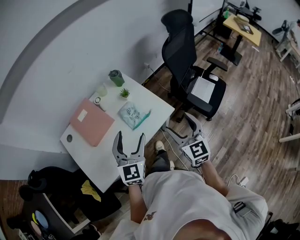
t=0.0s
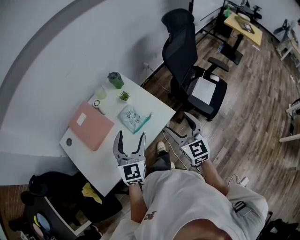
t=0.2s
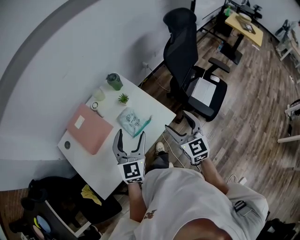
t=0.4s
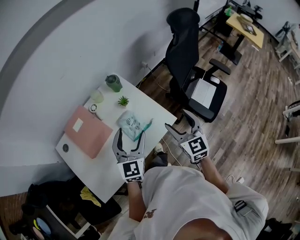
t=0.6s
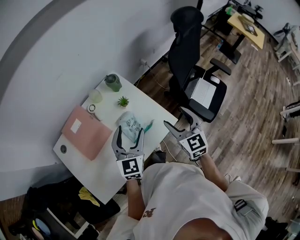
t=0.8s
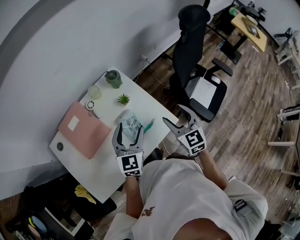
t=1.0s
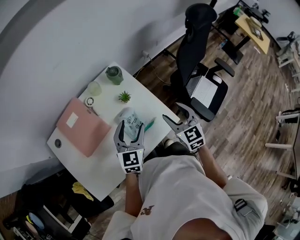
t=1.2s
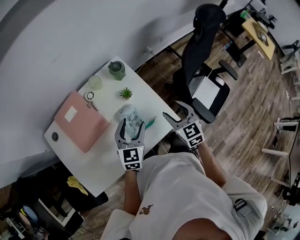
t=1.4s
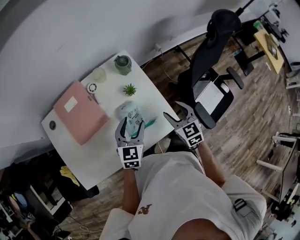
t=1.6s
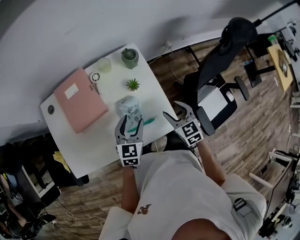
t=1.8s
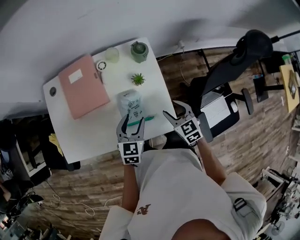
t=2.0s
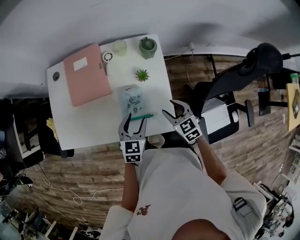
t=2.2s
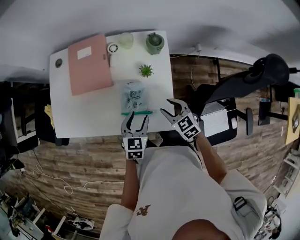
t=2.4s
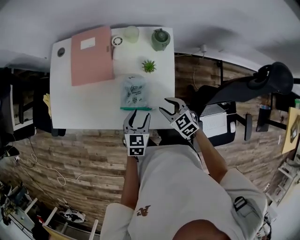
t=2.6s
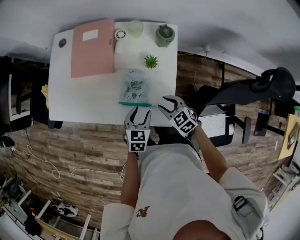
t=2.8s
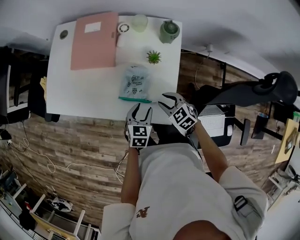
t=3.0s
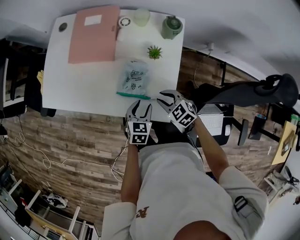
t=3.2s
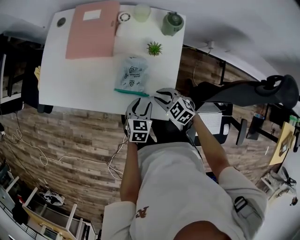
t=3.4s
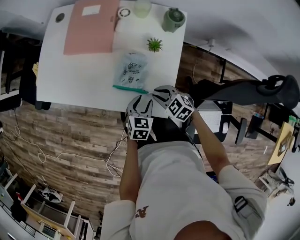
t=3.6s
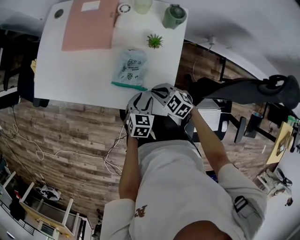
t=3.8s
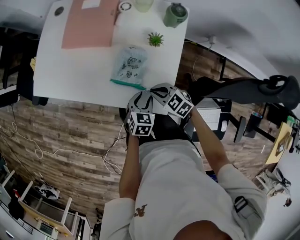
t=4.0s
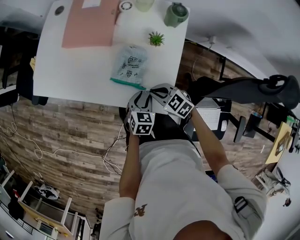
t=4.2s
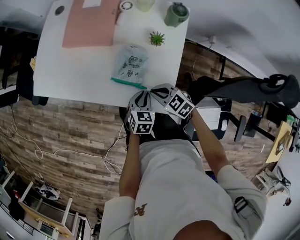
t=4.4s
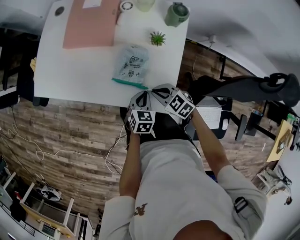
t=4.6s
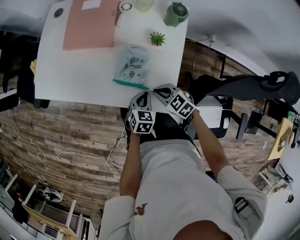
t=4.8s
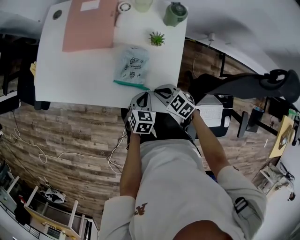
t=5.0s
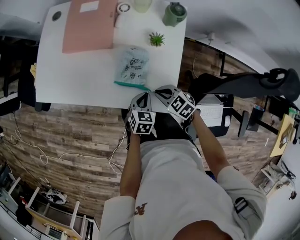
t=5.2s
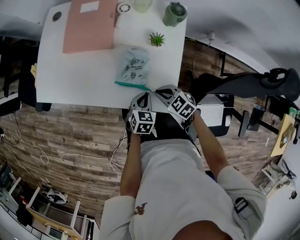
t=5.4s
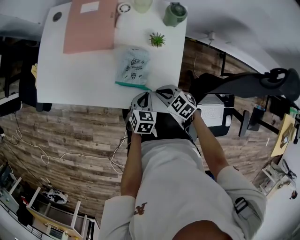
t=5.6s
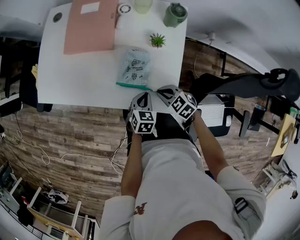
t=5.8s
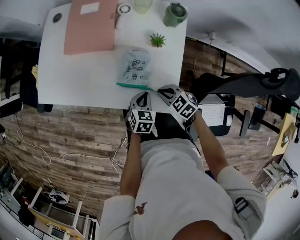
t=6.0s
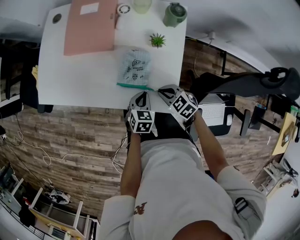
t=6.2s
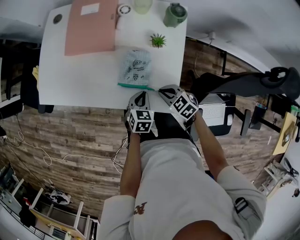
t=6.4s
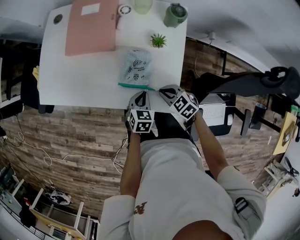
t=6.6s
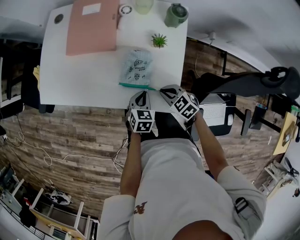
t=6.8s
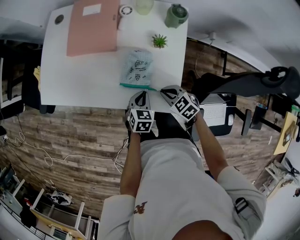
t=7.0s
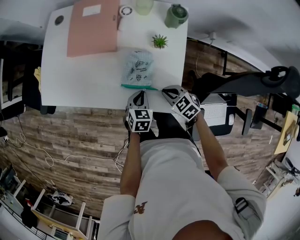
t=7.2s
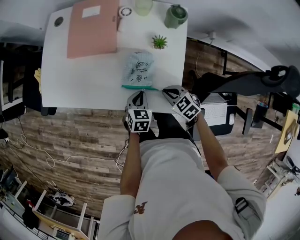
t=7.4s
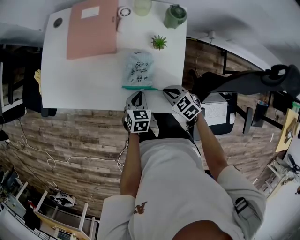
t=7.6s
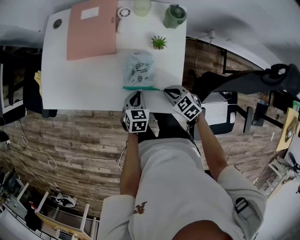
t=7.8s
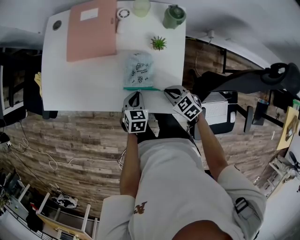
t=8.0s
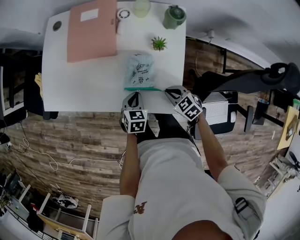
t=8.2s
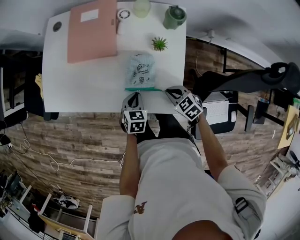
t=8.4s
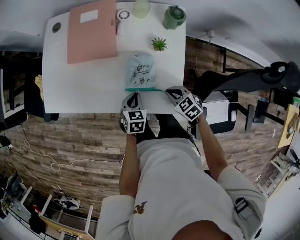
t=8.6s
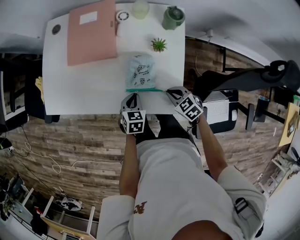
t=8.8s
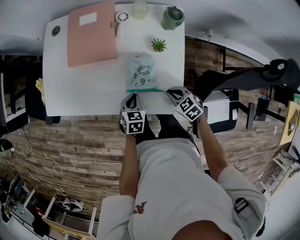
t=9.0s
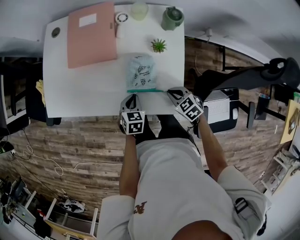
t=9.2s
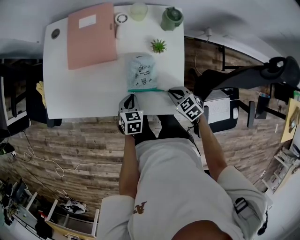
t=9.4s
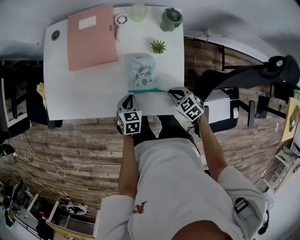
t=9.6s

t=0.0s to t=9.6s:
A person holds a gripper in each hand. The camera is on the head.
t=0.0s to t=1.6s: The two grippers go approximately 25 cm forward and downward. The right gripper turns by about 30 degrees, while the left gripper swivels approximately 20 degrees.
t=1.6s to t=3.2s: Both grippers move downward, approximately 15 cm. The right gripper swivels about 70 degrees, and closes up; the left gripper changes its angle by roughly 40 degrees.
t=3.2s to t=4.8s: The left gripper closes up.
t=4.8s to t=6.4s: The grippers make only small movements.
t=6.4s to t=8.0s: The grippers stay close to where they were, moving slightly.
t=8.0s to t=9.6s: The left gripper changes place by some 5 cm.

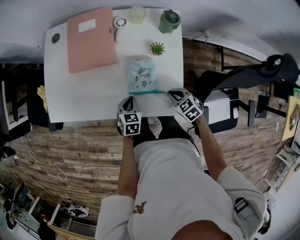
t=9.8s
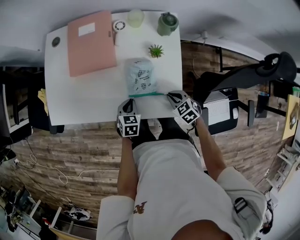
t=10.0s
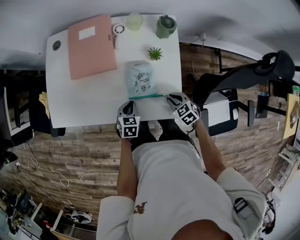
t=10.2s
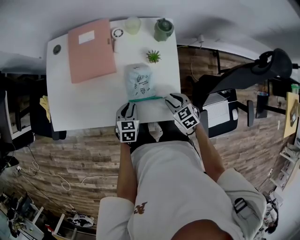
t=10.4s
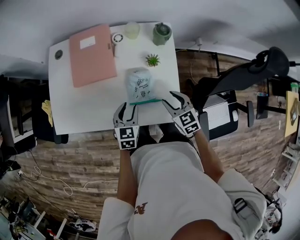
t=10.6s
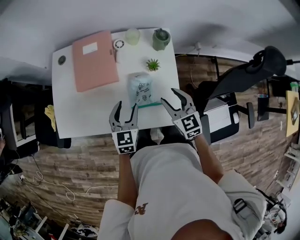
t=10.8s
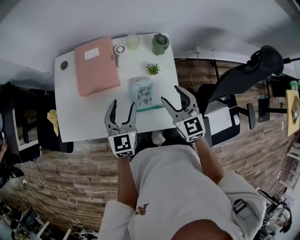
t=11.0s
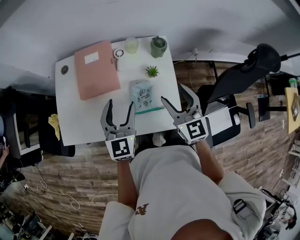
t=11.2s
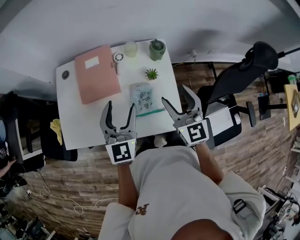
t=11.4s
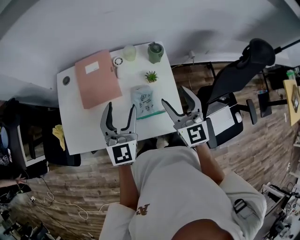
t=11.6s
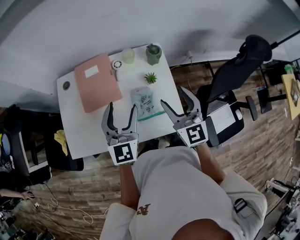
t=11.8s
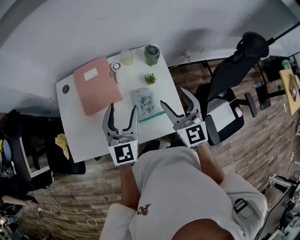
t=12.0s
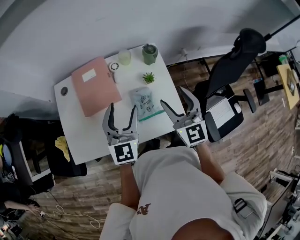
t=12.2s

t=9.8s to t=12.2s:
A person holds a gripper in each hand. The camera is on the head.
t=9.8s to t=11.0s: The two grippers go roughly 25 cm upward. The left gripper points its fingers roughly 30 degrees further upward, and opens its fingers, while the right gripper points its fingers roughly 40 degrees further upward, and opens up.
t=11.0s to t=12.2s: The grippers both shift upward by approximately 10 cm.

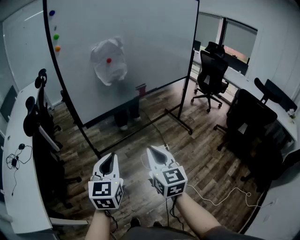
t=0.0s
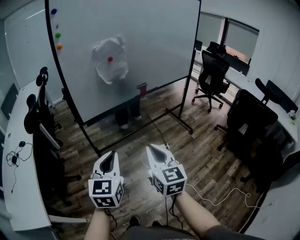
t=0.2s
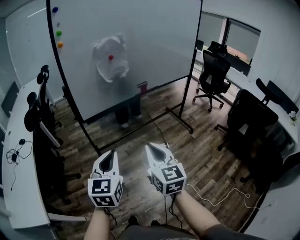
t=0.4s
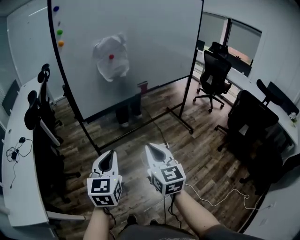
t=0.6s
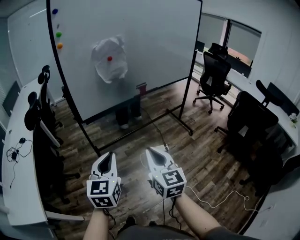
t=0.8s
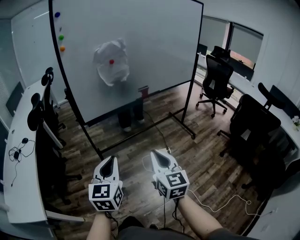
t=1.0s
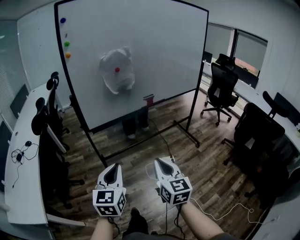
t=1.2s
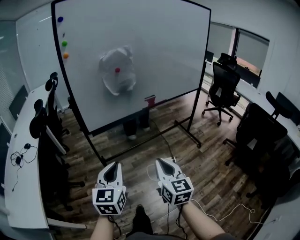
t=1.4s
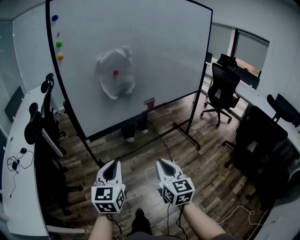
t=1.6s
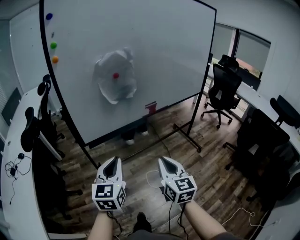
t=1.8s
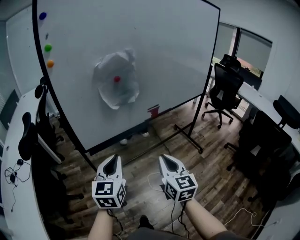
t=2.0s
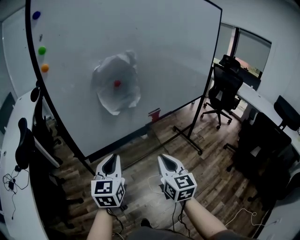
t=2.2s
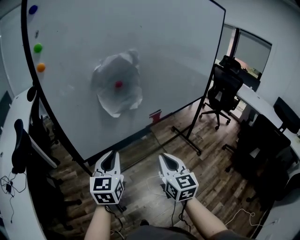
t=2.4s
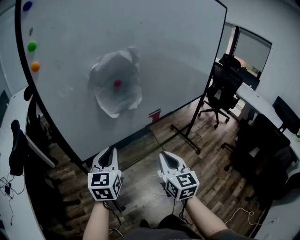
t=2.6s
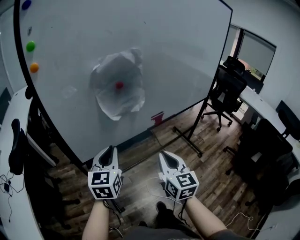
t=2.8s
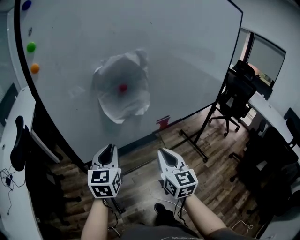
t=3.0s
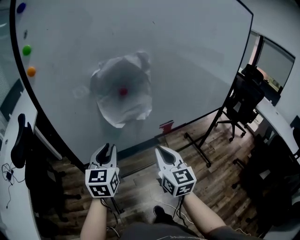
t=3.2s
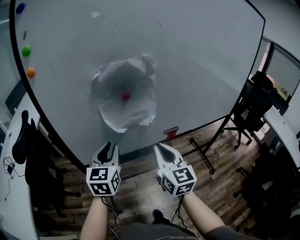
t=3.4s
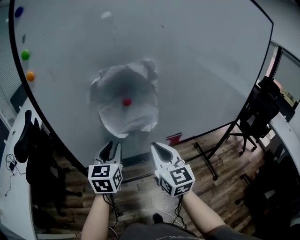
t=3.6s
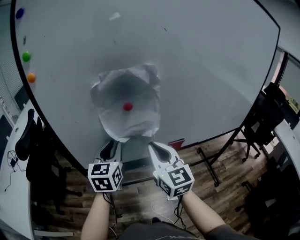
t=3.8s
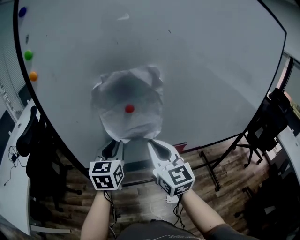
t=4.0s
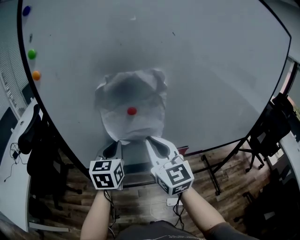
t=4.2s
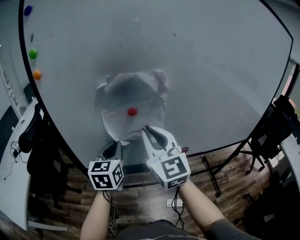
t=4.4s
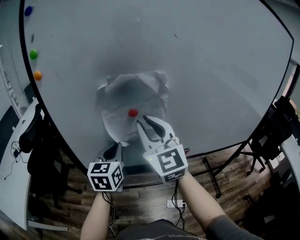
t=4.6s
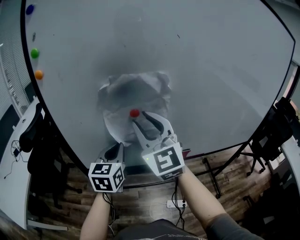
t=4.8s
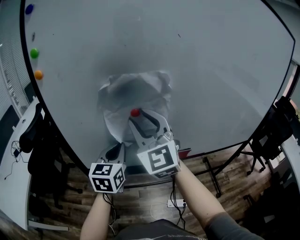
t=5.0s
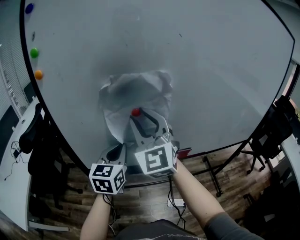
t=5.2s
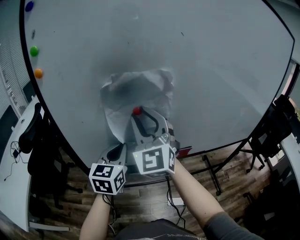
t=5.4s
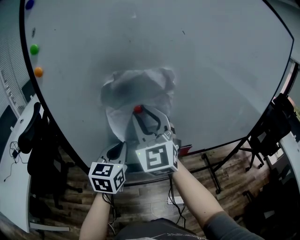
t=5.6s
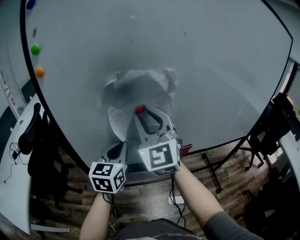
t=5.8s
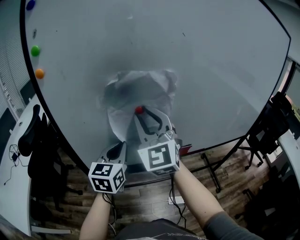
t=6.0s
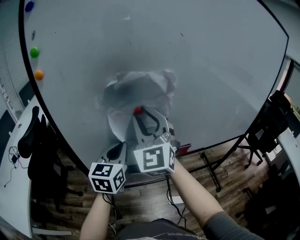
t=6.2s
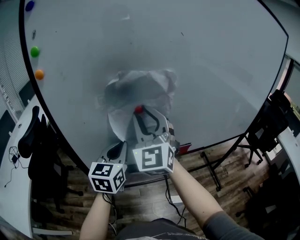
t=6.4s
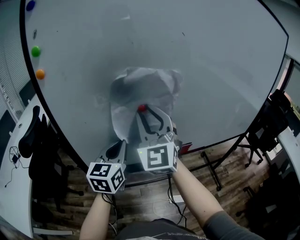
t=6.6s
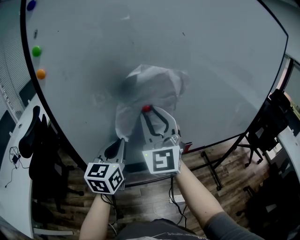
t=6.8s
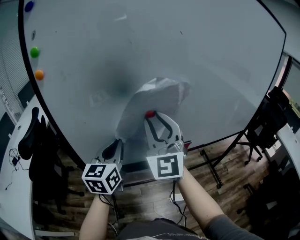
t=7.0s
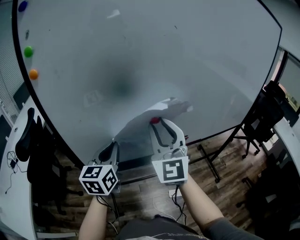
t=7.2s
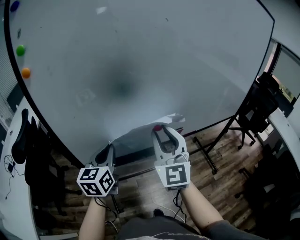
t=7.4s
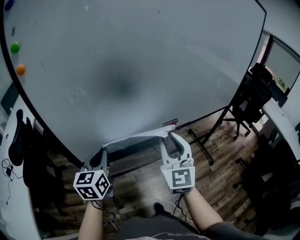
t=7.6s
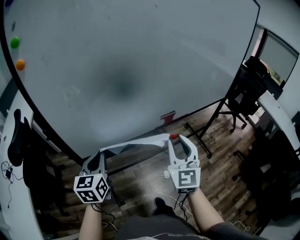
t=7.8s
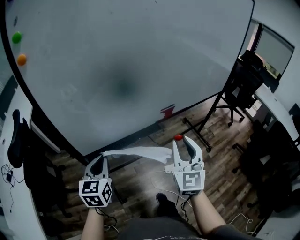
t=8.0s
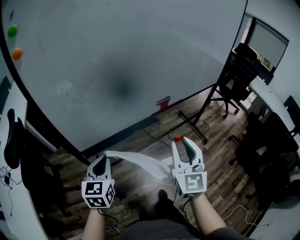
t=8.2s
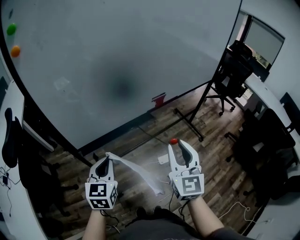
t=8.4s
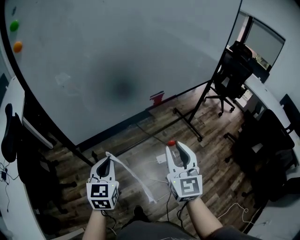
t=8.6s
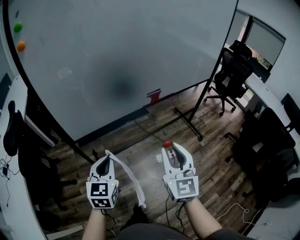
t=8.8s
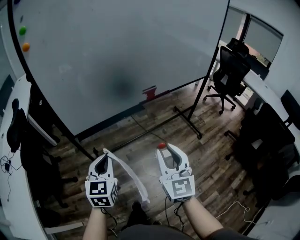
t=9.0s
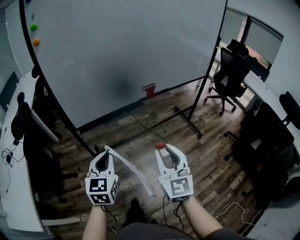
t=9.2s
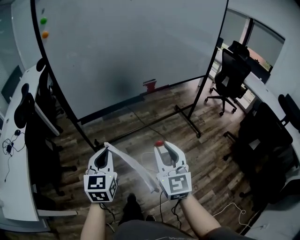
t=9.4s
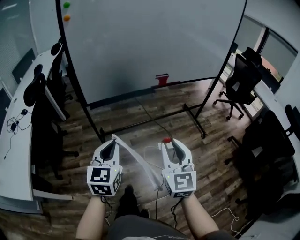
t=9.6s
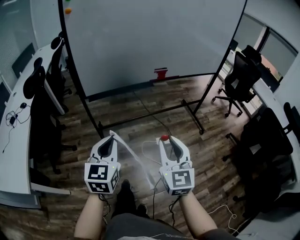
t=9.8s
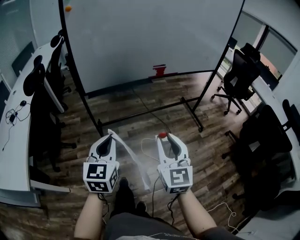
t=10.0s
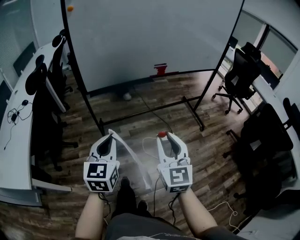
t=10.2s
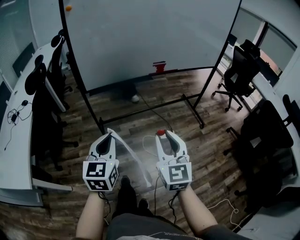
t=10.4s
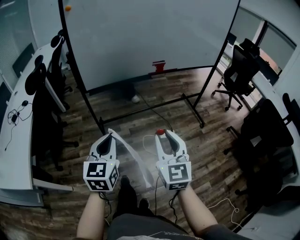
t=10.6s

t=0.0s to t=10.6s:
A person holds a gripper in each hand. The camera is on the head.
t=0.0s to t=1.6s: The right gripper heads forward and downward, covering roughly 10 cm. Meanwhile the left gripper heads forward, covering some 10 cm.
t=1.6s to t=3.0s: Both grippers travel together forward, roughly 30 cm.
t=3.0s to t=4.6s: The left gripper moves forward, some 10 cm, while the right gripper goes some 25 cm forward and upward, and rotates about 40 degrees.
t=6.0s to t=7.6s: The left gripper goes about 10 cm backward and downward. Meanwhile the right gripper is displaced downward, to the right and backward by about 20 cm, and rotates about 30 degrees.
t=7.6s to t=9.0s: The right gripper goes about 25 cm backward, while the left gripper is displaced backward and to the right by roughly 20 cm.
t=9.0s to t=10.6s: The two grippers go some 20 cm backward.

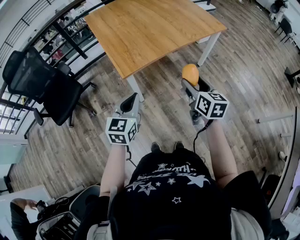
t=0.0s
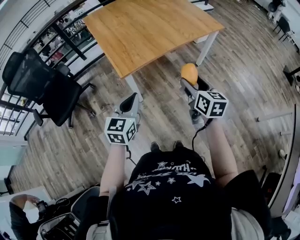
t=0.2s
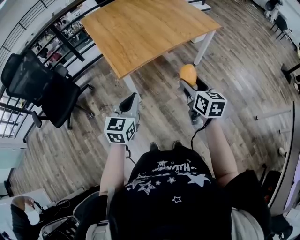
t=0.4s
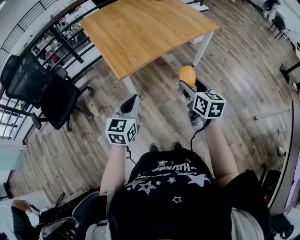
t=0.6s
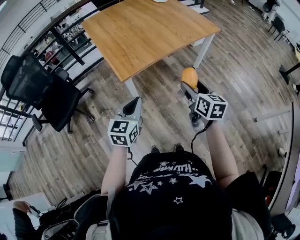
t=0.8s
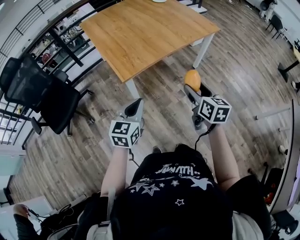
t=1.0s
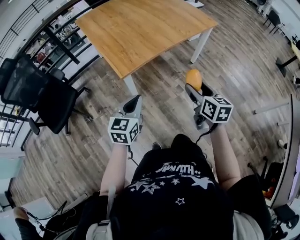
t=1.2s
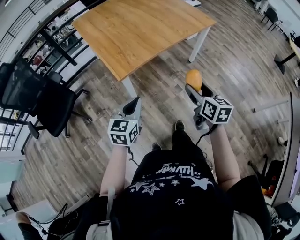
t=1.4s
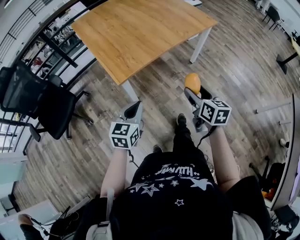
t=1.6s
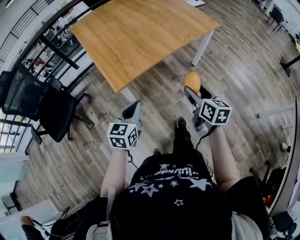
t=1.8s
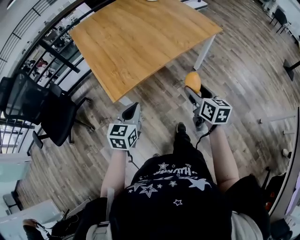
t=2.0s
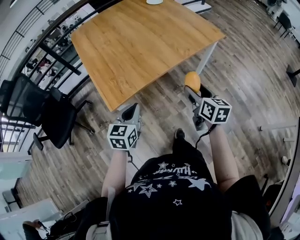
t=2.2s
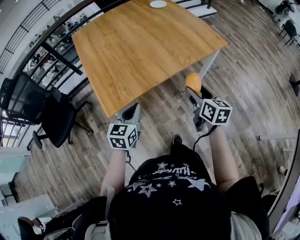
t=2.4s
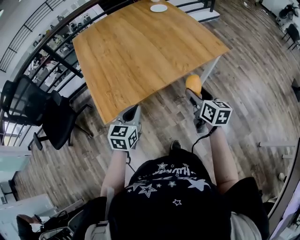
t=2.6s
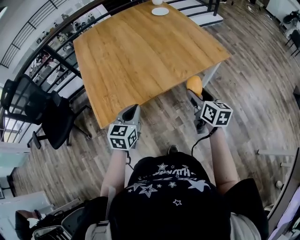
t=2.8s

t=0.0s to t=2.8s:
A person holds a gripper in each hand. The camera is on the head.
t=0.0s to t=1.4s: The grippers stay close to where they were, moving slightly.
t=1.4s to t=2.8s: The two grippers go some 30 cm forward and to the right.
